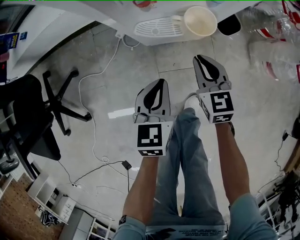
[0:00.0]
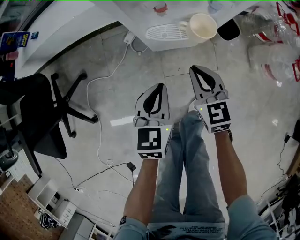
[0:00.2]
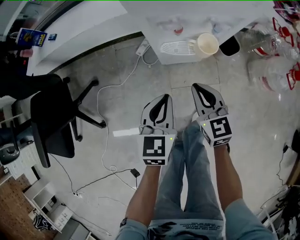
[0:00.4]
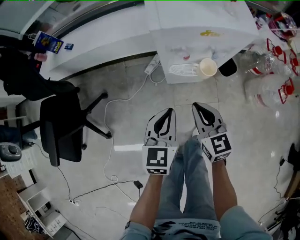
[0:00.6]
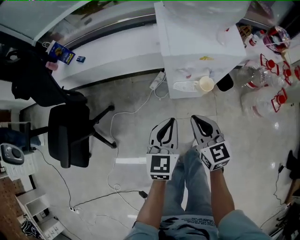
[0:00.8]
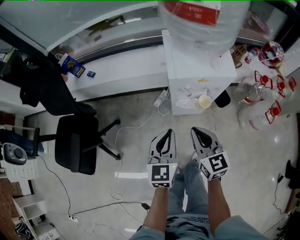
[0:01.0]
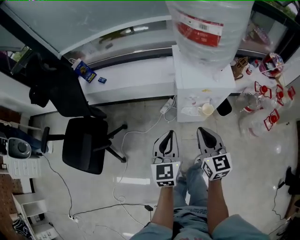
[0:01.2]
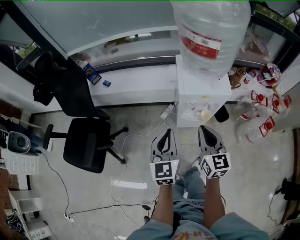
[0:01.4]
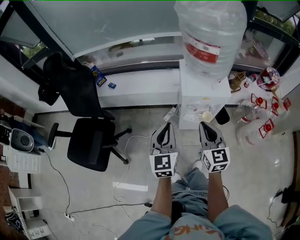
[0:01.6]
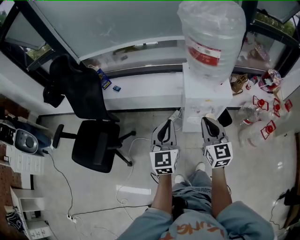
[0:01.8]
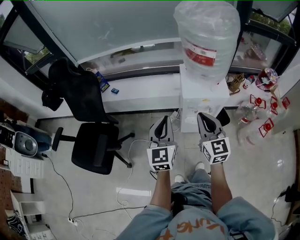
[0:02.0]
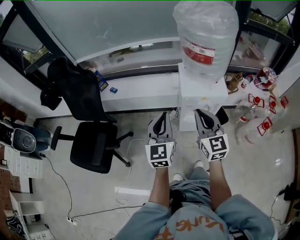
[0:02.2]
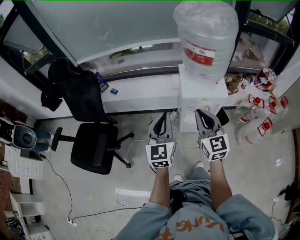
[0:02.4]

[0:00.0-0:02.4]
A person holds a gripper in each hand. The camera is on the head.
0:00.0 to 0:01.2: The grippers both shift upward by approximately 40 cm. The left gripper swivels roughly 20 degrees.
0:01.2 to 0:02.4: The grippers both shift upward by approximately 15 cm.

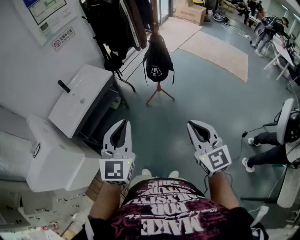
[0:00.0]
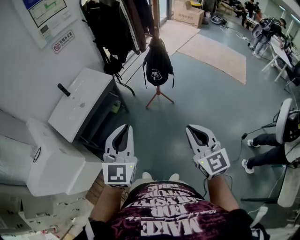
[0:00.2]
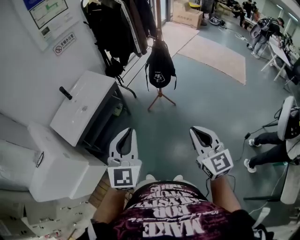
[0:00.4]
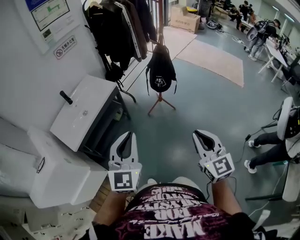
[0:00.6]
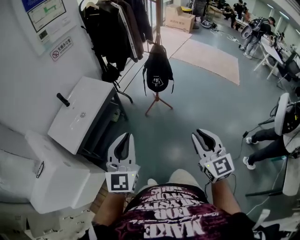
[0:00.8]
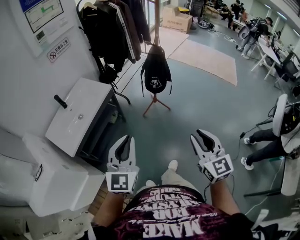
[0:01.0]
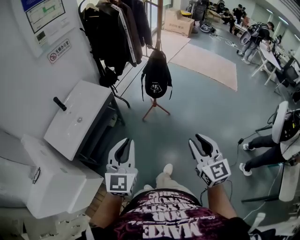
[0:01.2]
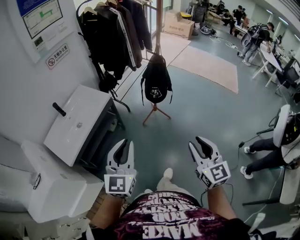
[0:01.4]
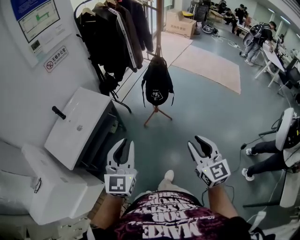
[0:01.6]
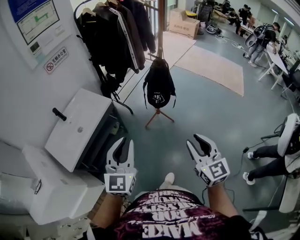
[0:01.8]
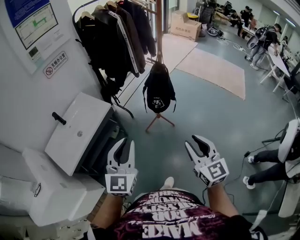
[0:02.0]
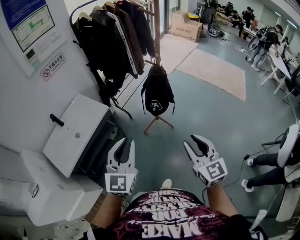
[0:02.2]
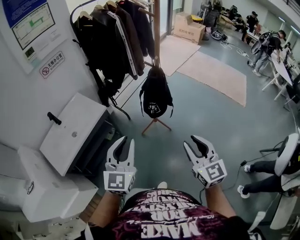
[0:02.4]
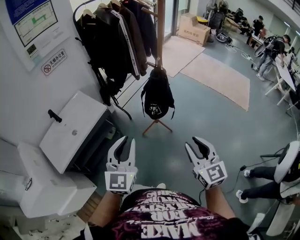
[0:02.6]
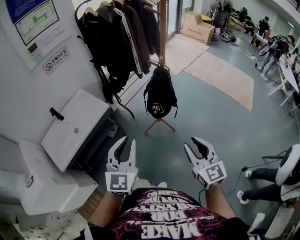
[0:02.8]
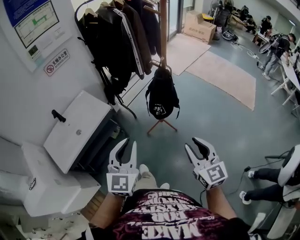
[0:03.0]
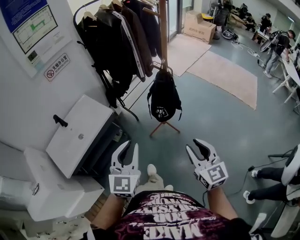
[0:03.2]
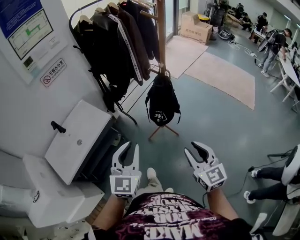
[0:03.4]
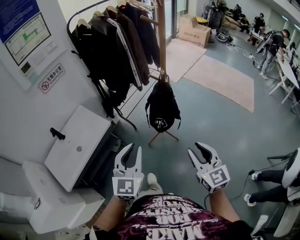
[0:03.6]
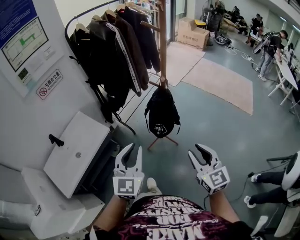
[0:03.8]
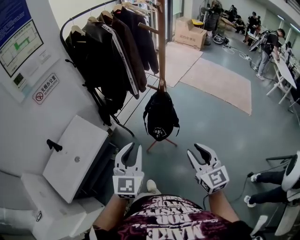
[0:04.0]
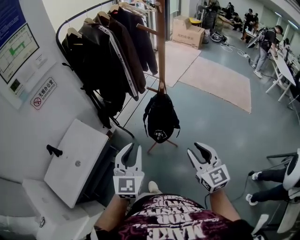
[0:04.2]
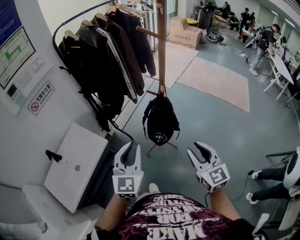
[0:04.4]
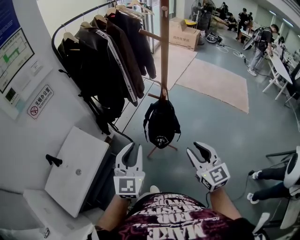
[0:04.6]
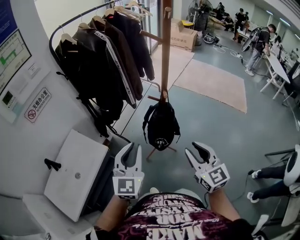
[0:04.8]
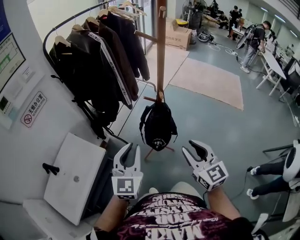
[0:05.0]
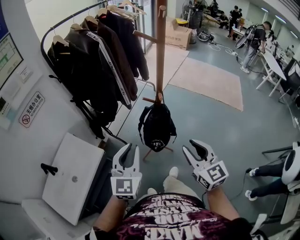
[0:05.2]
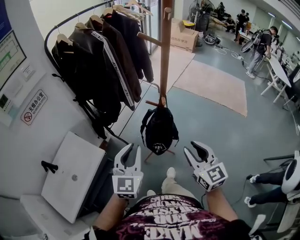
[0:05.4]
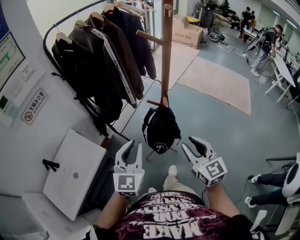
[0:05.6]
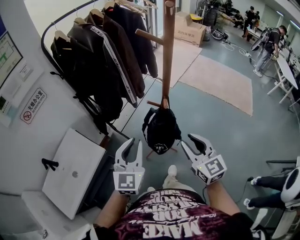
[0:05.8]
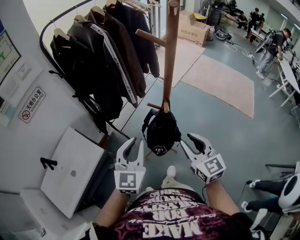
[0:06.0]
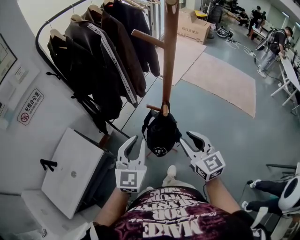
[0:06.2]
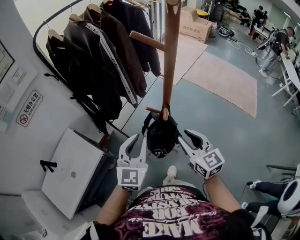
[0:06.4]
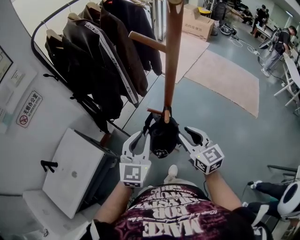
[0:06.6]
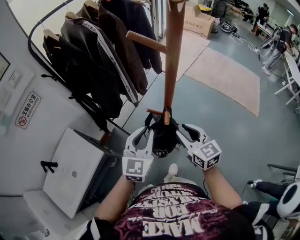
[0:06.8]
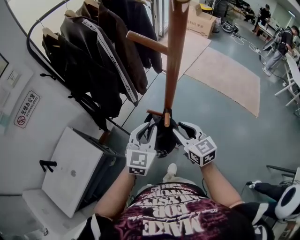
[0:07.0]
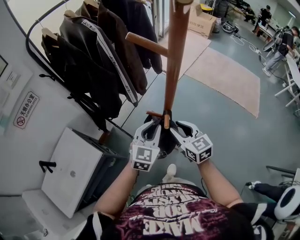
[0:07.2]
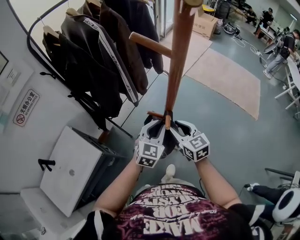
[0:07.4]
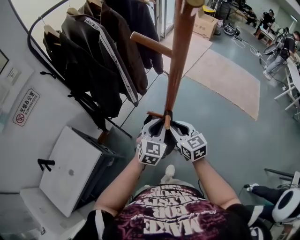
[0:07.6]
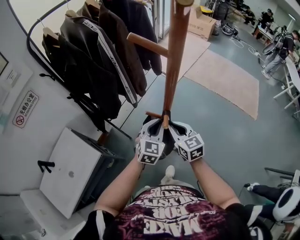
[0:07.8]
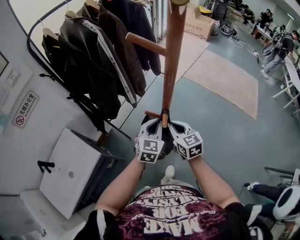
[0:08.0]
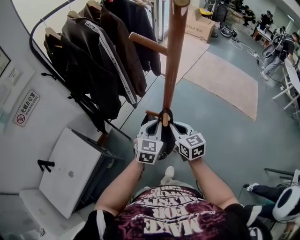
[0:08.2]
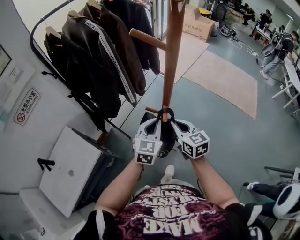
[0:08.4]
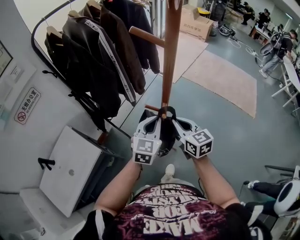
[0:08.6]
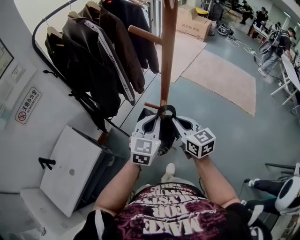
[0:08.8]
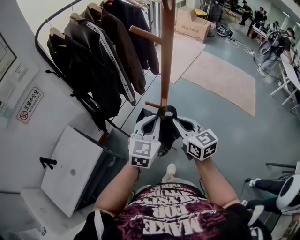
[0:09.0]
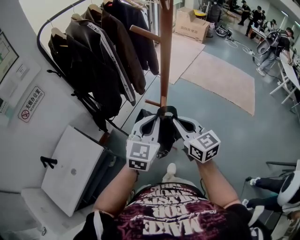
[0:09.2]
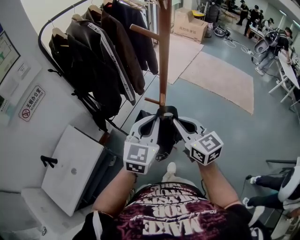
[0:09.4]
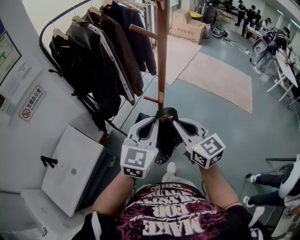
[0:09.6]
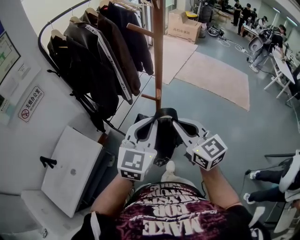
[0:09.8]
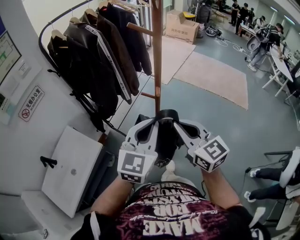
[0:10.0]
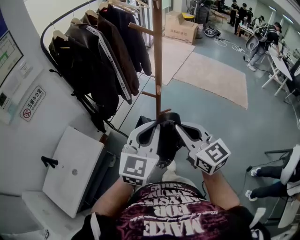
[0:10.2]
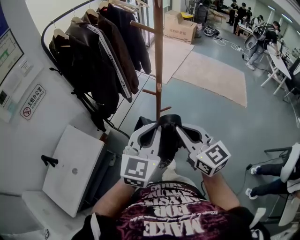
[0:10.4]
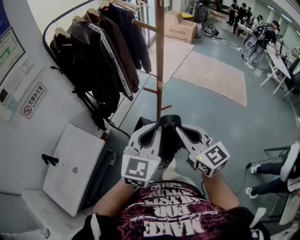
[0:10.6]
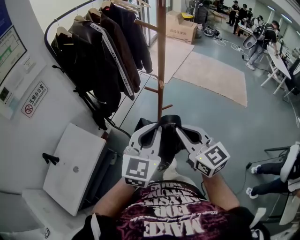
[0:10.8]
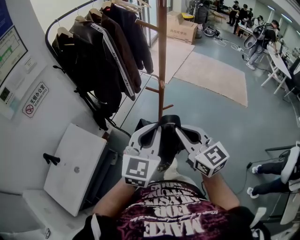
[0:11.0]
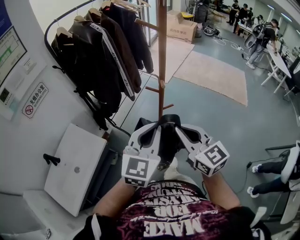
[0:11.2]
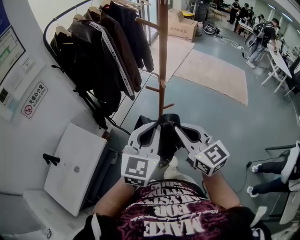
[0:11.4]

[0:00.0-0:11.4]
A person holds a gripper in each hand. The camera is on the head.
0:00.0 to 0:01.4: The right gripper travels forward by about 5 cm, and opens its fingers, while the left gripper travels to the left and forward by roughly 10 cm.
0:01.4 to 0:02.8: The two grippers go some 20 cm forward and to the right.
0:02.8 to 0:04.2: Both grippers travel together forward, roughly 15 cm.
0:04.2 to 0:05.6: The two grippers go roughly 10 cm forward.
0:05.6 to 0:07.2: The left gripper moves forward, to the right and downward, approximately 25 cm, while the right gripper goes some 20 cm forward and downward.
0:07.2 to 0:08.6: The right gripper closes its fingers.
0:08.6 to 0:10.0: Both grippers travel together backward and upward, about 20 cm.
0:10.0 to 0:11.4: The right gripper changes place by about 5 cm, while the left gripper ends up approximately 5 cm from where it was.

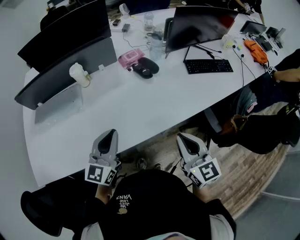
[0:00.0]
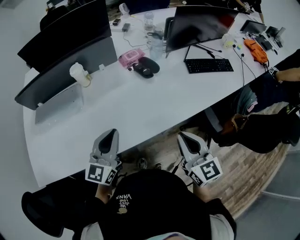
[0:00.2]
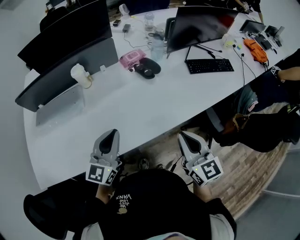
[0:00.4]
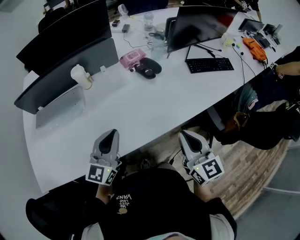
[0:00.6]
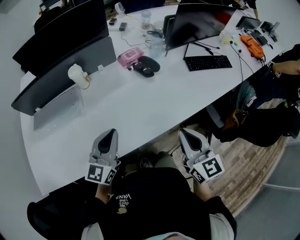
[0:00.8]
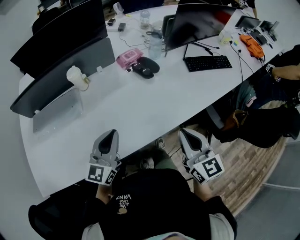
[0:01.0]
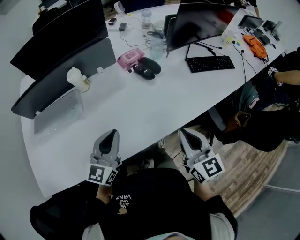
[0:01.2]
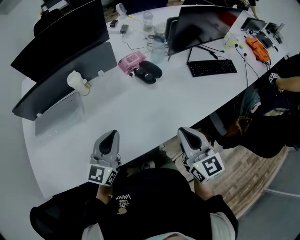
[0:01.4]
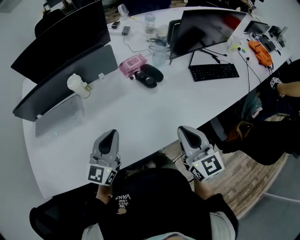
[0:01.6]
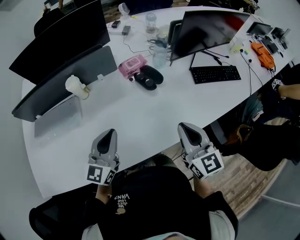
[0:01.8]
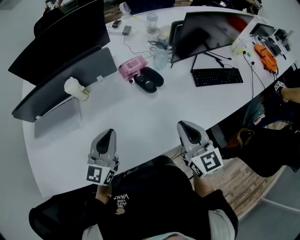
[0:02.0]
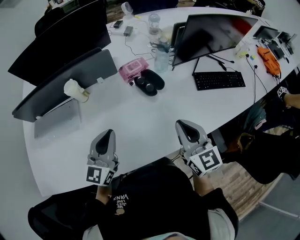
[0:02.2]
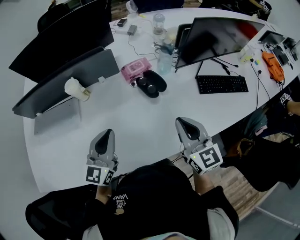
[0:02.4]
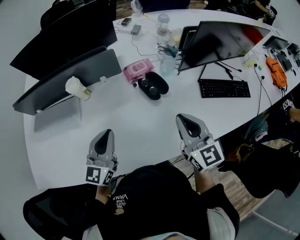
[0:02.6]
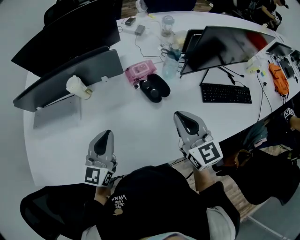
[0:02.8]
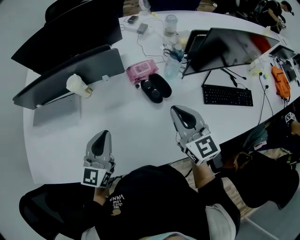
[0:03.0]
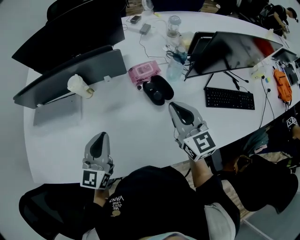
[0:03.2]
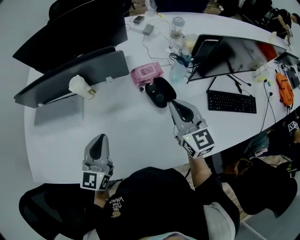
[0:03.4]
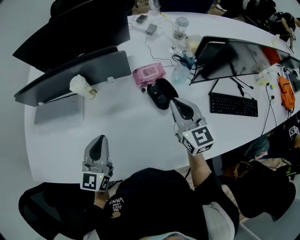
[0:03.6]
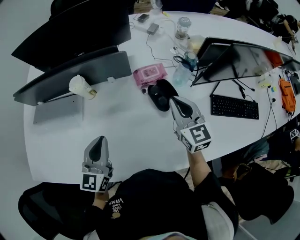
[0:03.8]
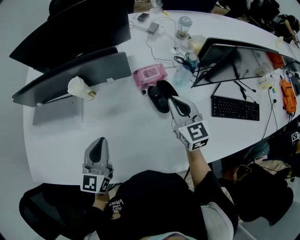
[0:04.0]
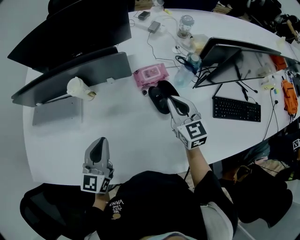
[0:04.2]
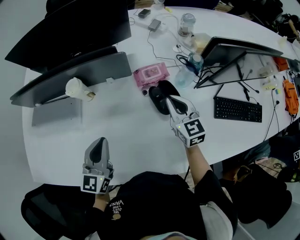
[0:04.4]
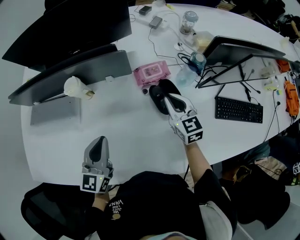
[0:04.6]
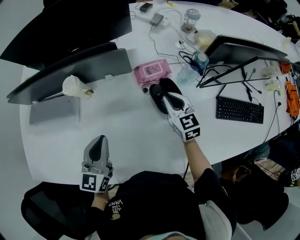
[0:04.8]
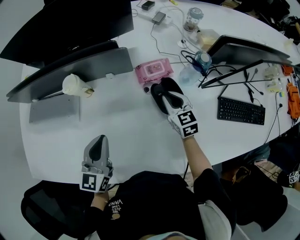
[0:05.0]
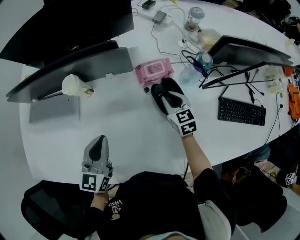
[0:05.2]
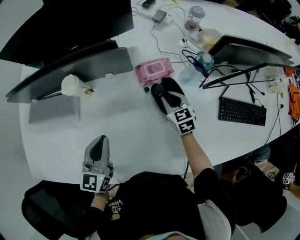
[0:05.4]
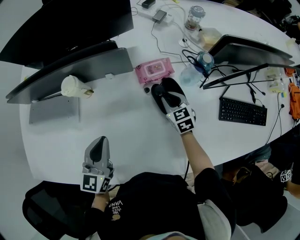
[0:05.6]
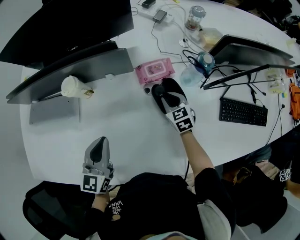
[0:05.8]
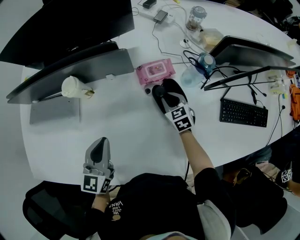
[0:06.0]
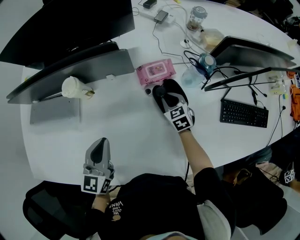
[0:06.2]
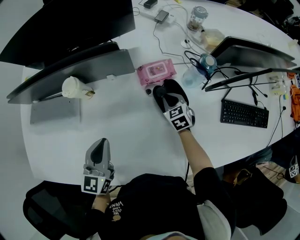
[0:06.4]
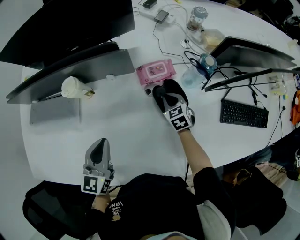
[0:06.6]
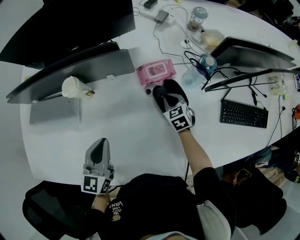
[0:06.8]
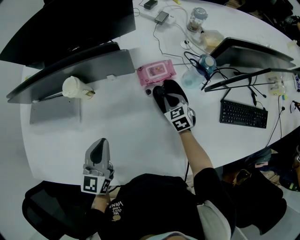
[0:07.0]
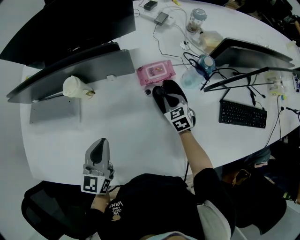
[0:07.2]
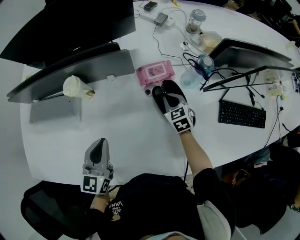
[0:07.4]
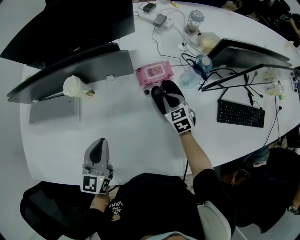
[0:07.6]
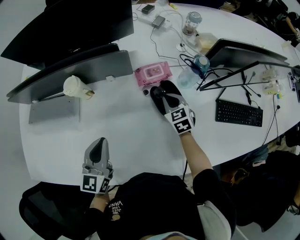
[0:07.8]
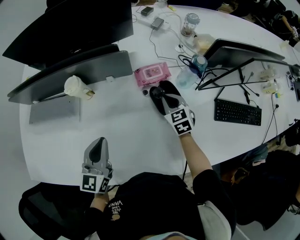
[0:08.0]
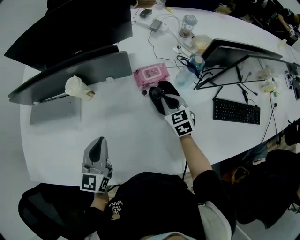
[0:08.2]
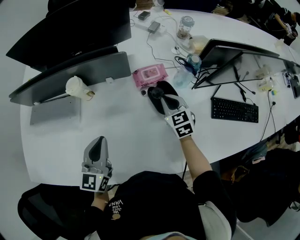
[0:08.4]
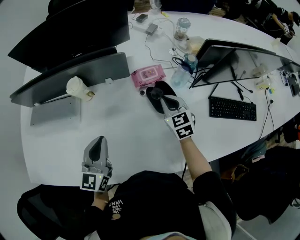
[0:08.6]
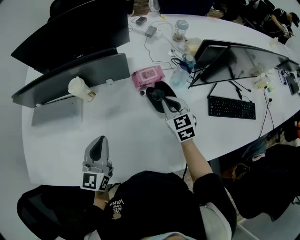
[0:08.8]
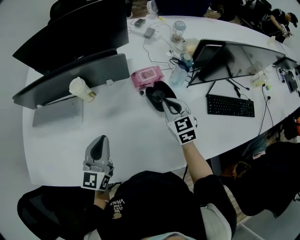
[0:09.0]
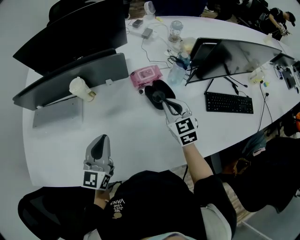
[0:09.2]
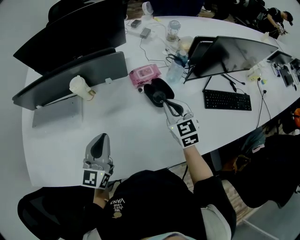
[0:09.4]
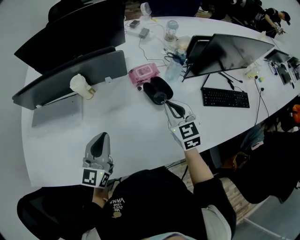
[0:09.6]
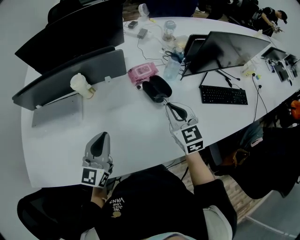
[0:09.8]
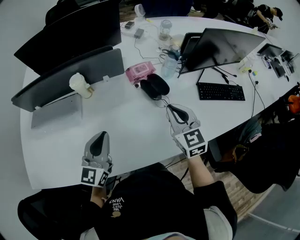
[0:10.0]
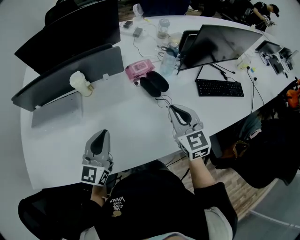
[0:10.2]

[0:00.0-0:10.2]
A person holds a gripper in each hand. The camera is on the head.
0:00.0 to 0:01.4: The two grippers go about 5 cm forward.
0:01.4 to 0:03.0: The left gripper moves forward, about 10 cm. Meanwhile the right gripper travels forward by approximately 25 cm.
0:03.0 to 0:04.4: The left gripper is displaced forward by approximately 5 cm. The right gripper heads forward and downward, covering some 20 cm.
0:04.4 to 0:05.8: The right gripper goes about 15 cm downward, and changes its angle by about 20 degrees.
0:05.8 to 0:07.2: There are only small adjustments of the grippers.
0:07.2 to 0:08.8: The left gripper changes place by roughly 5 cm; the right gripper shifts about 15 cm upward and backward.
0:08.8 to 0:10.2: The right gripper travels backward and upward by some 20 cm. Meanwhile the left gripper is displaced backward by some 5 cm.
